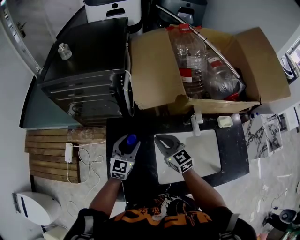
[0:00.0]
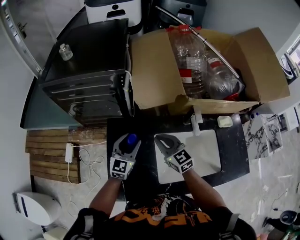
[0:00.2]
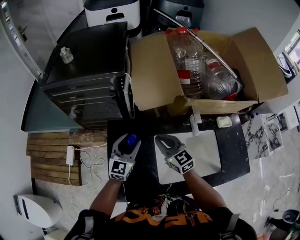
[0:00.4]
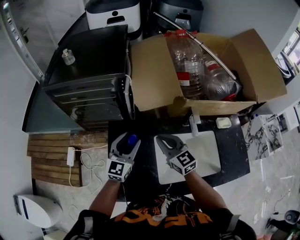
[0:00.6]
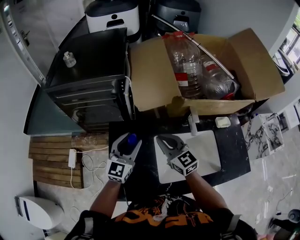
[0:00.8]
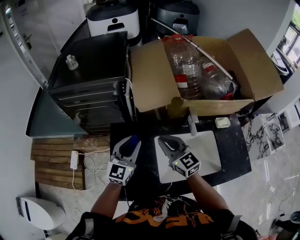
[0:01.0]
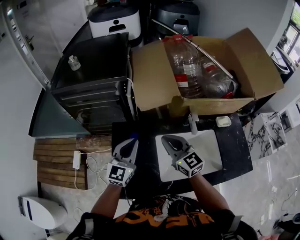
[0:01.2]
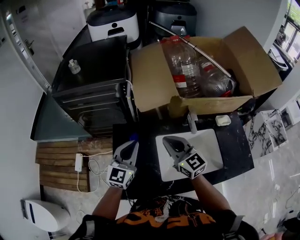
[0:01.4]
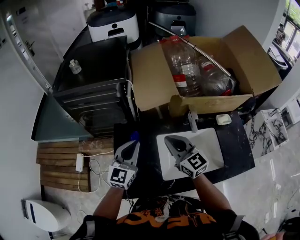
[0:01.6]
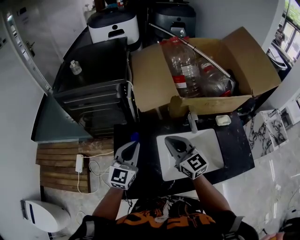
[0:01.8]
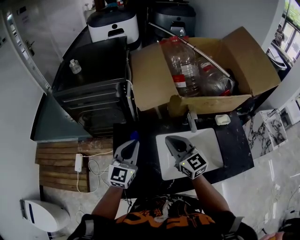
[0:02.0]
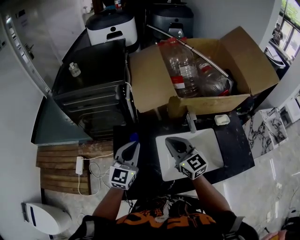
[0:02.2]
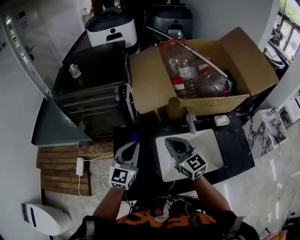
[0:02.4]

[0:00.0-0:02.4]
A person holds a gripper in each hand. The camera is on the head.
0:00.0 to 0:01.2: The grippers both shift upward and backward by approximately 15 cm. The left gripper closes up.
0:01.2 to 0:02.4: The grippers move only a little.

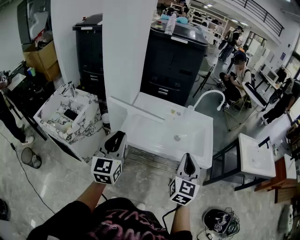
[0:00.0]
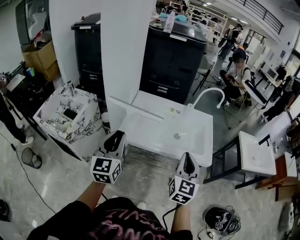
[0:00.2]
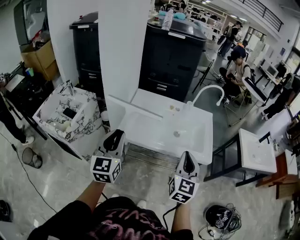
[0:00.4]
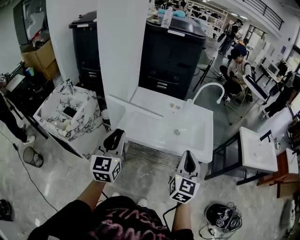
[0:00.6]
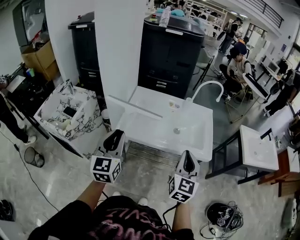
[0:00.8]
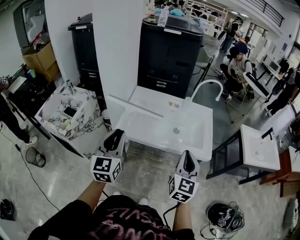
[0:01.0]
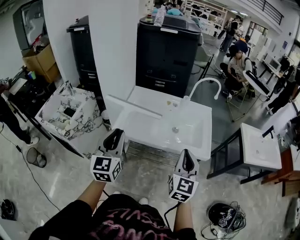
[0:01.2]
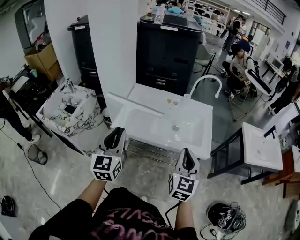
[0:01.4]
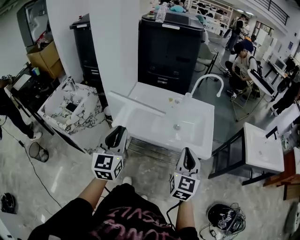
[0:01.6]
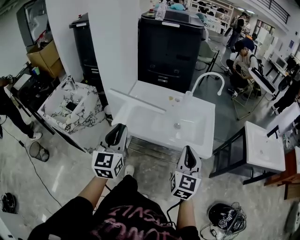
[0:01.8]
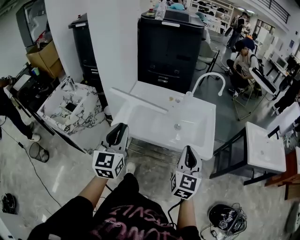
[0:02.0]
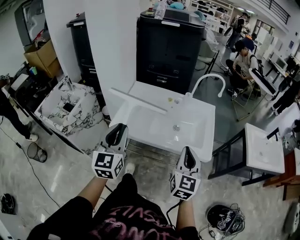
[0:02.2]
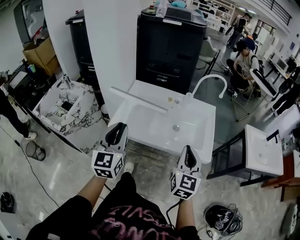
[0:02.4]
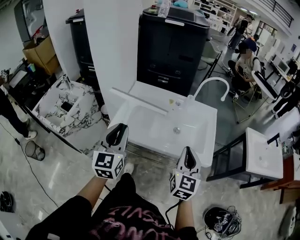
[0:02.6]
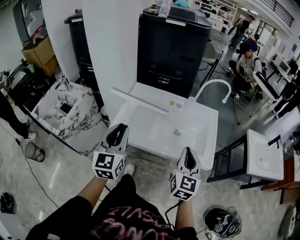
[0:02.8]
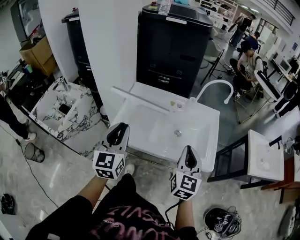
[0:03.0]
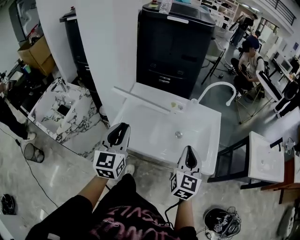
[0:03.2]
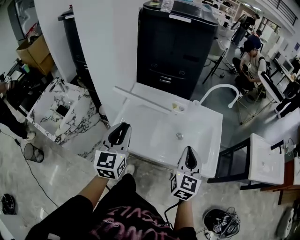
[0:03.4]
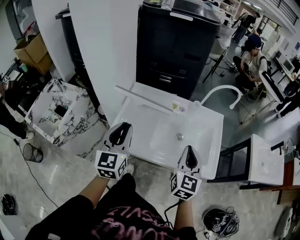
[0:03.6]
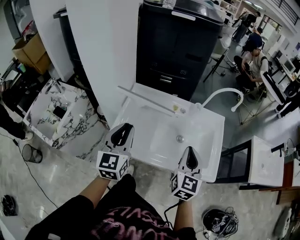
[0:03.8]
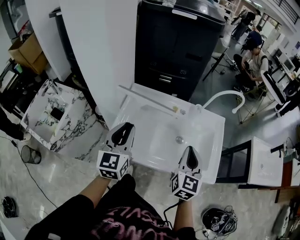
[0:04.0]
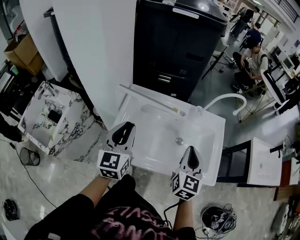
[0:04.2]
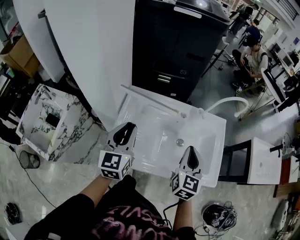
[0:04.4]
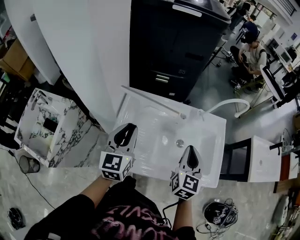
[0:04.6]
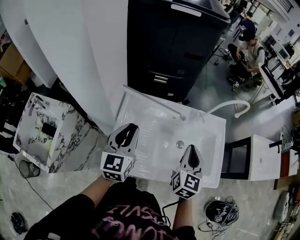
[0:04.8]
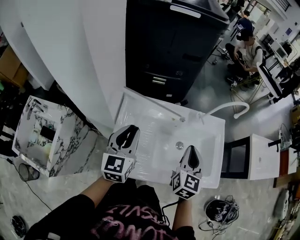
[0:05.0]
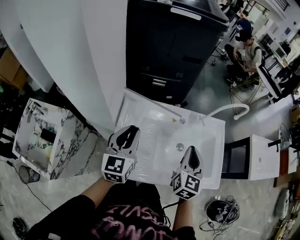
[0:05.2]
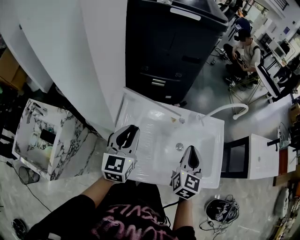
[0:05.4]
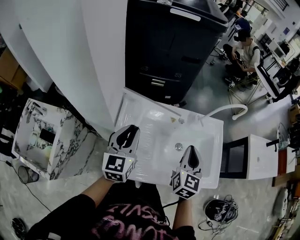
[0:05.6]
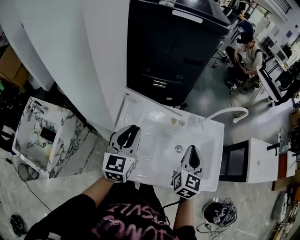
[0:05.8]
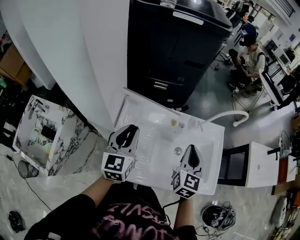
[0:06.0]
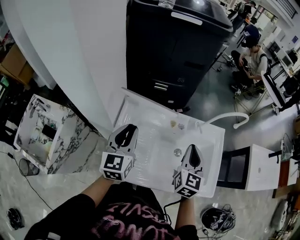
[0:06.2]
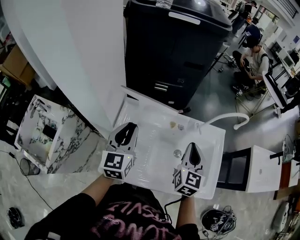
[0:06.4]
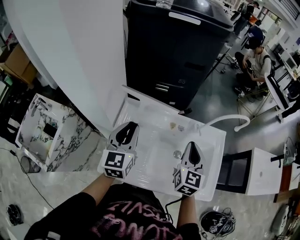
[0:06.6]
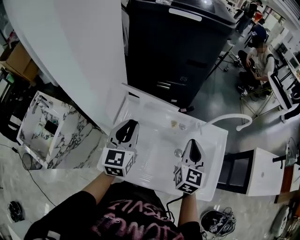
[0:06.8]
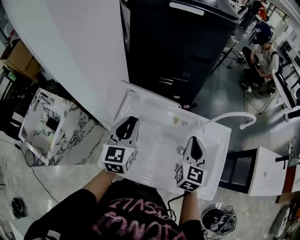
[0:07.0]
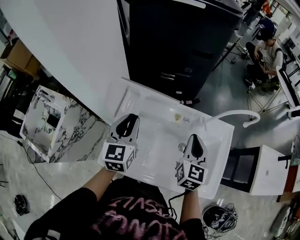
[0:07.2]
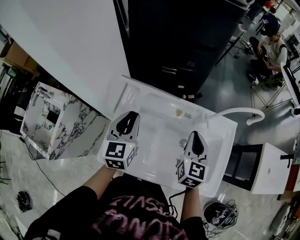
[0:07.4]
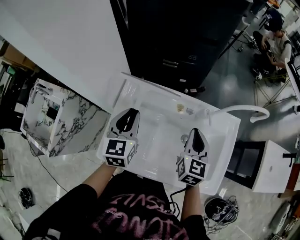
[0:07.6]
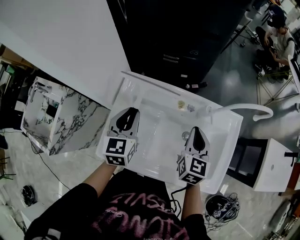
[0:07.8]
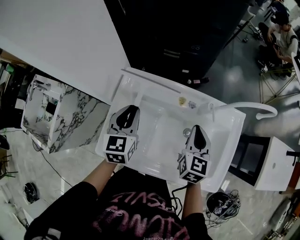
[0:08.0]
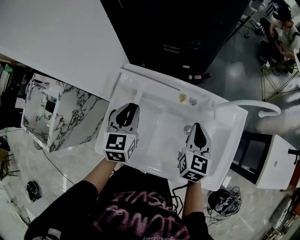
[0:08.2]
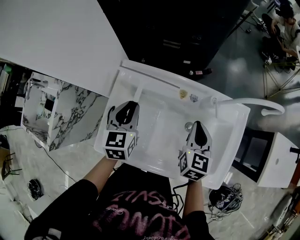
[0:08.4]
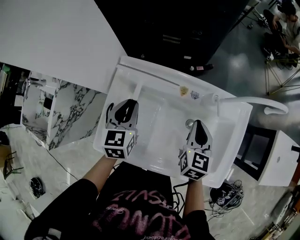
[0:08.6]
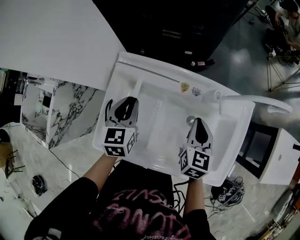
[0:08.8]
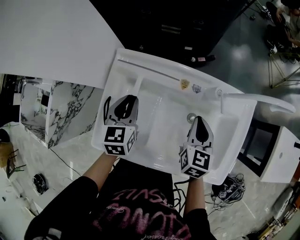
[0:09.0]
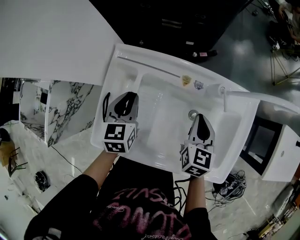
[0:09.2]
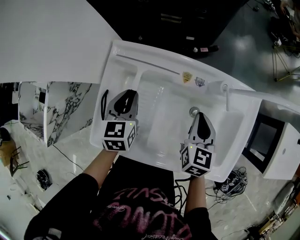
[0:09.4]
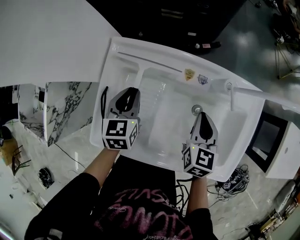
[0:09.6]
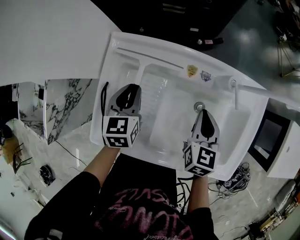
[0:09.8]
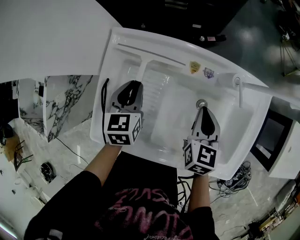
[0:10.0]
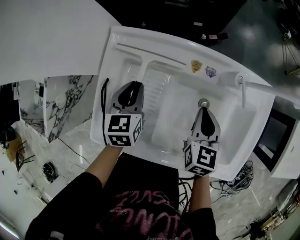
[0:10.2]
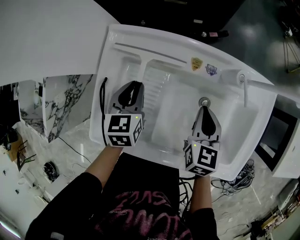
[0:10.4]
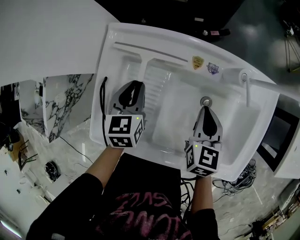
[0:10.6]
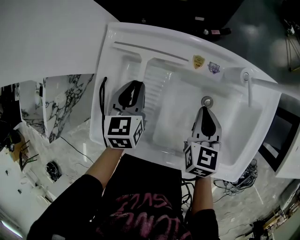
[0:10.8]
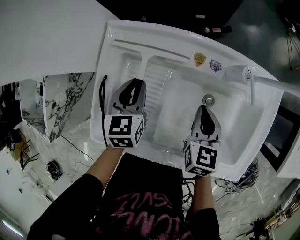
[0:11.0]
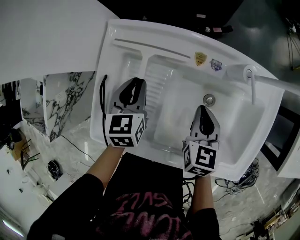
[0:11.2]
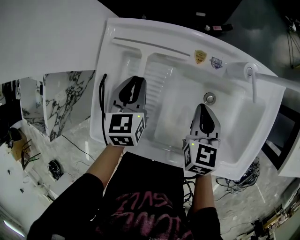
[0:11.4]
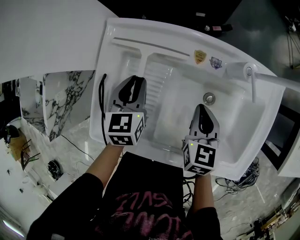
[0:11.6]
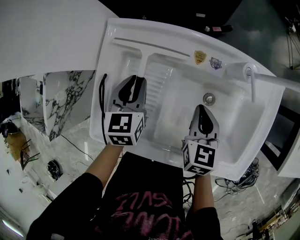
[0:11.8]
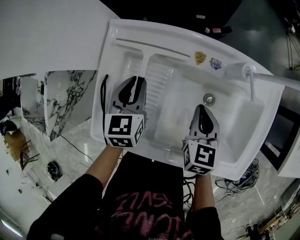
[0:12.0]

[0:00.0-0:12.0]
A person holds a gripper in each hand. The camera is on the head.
0:00.0 to 0:01.6: The two grippers go approximately 10 cm to the right.
0:01.6 to 0:03.0: Both grippers travel together forward, about 10 cm.
0:03.0 to 0:04.4: The grippers both shift forward by roughly 15 cm.
0:04.4 to 0:06.0: The grippers both shift forward by some 5 cm.
0:06.0 to 0:07.6: The left gripper is displaced downward by some 5 cm. Meanwhile the right gripper travels downward and forward by some 10 cm.
0:07.6 to 0:09.0: Both grippers travel together downward, approximately 10 cm.
0:09.0 to 0:10.4: Both grippers move downward, about 5 cm.
0:10.4 to 0:12.0: The grippers move only a little.

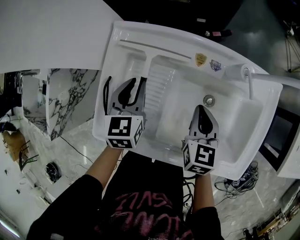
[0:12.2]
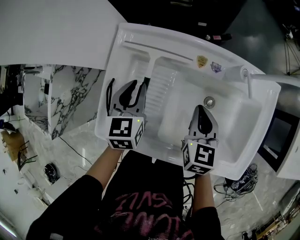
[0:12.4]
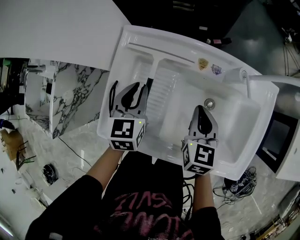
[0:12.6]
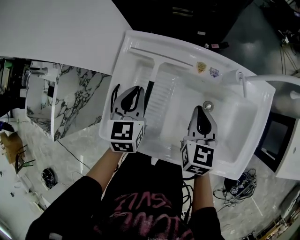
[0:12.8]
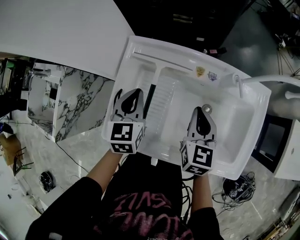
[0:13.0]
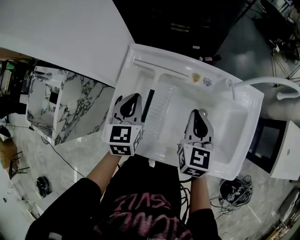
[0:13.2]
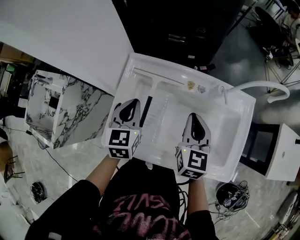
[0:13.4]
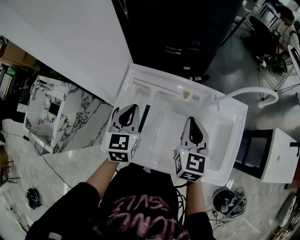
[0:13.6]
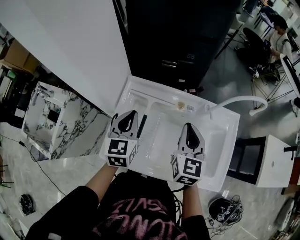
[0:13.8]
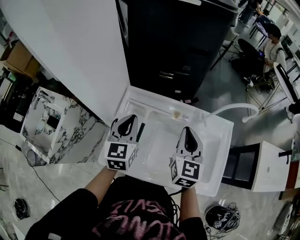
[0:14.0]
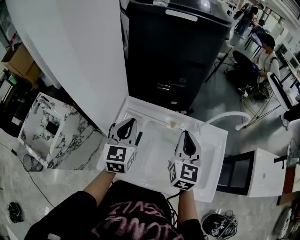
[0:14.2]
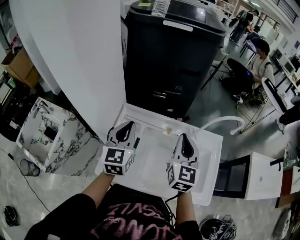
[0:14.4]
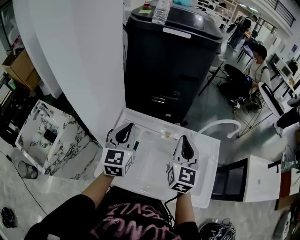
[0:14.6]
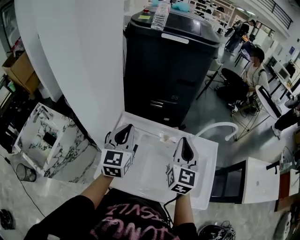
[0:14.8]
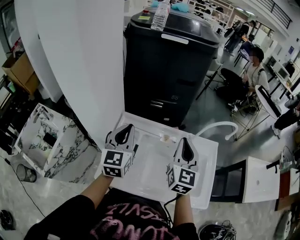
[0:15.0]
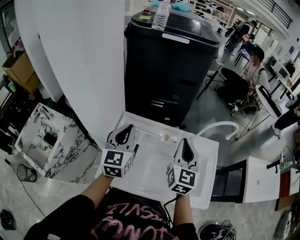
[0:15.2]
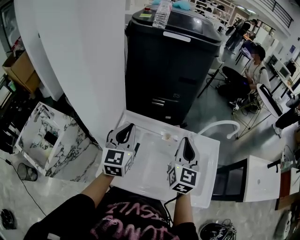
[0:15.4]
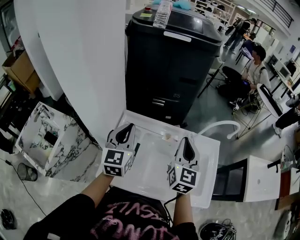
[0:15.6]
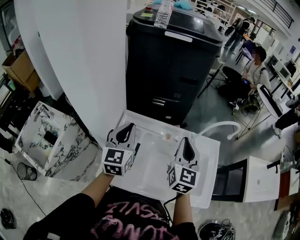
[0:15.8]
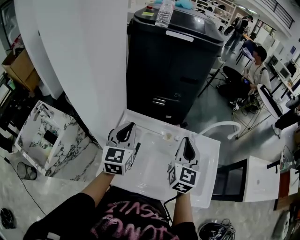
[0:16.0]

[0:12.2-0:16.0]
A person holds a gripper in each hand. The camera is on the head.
0:12.2 to 0:13.4: The two grippers go some 10 cm upward.
0:13.4 to 0:14.8: The two grippers go approximately 15 cm upward. The left gripper swivels some 20 degrees. The right gripper swivels approximately 20 degrees.
0:14.8 to 0:16.0: There are only small adjustments of the grippers.

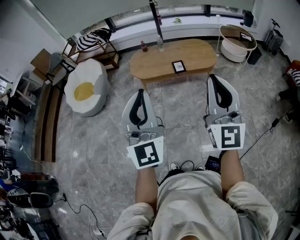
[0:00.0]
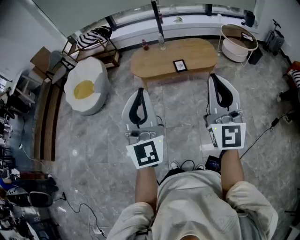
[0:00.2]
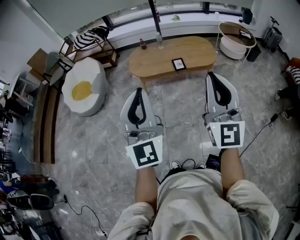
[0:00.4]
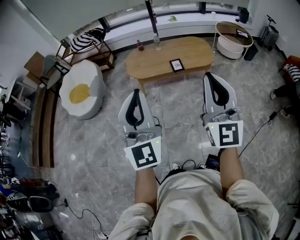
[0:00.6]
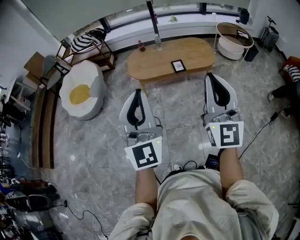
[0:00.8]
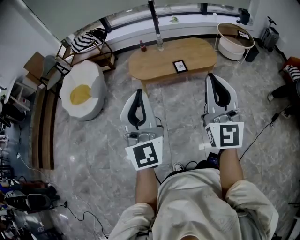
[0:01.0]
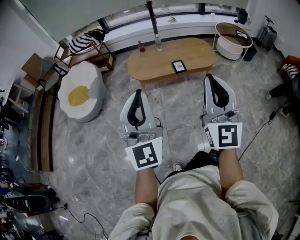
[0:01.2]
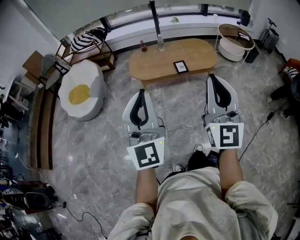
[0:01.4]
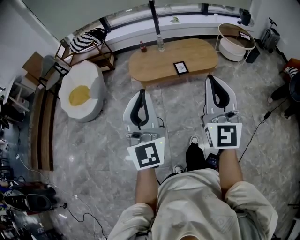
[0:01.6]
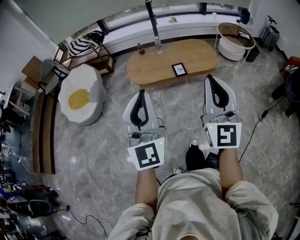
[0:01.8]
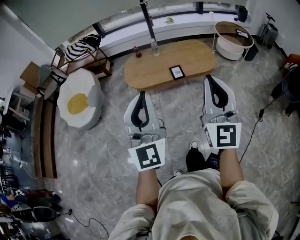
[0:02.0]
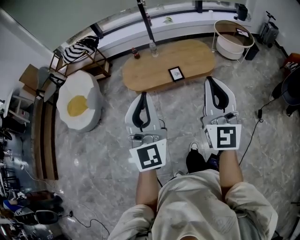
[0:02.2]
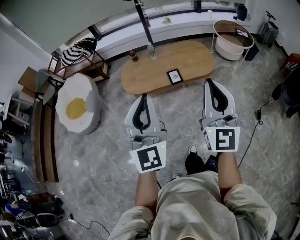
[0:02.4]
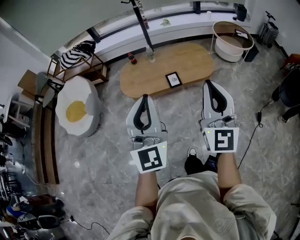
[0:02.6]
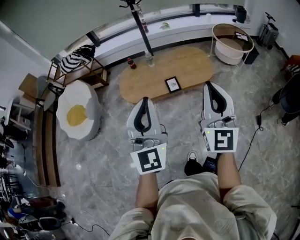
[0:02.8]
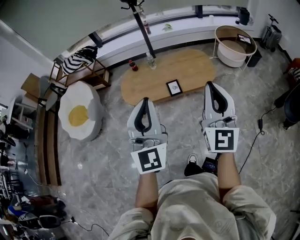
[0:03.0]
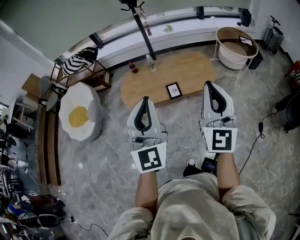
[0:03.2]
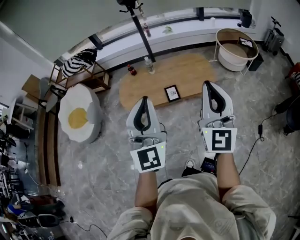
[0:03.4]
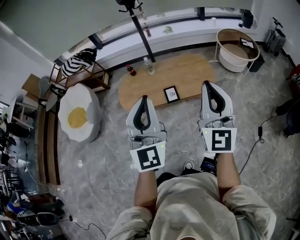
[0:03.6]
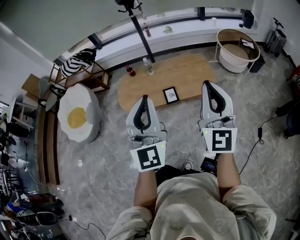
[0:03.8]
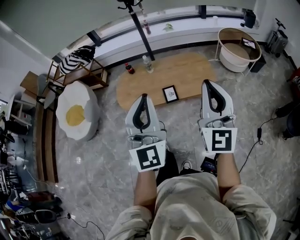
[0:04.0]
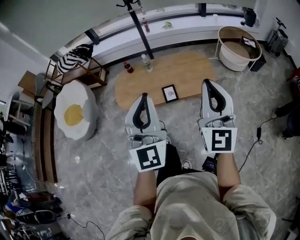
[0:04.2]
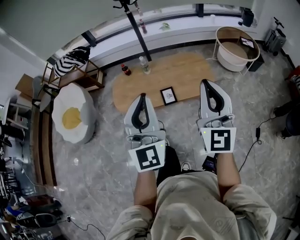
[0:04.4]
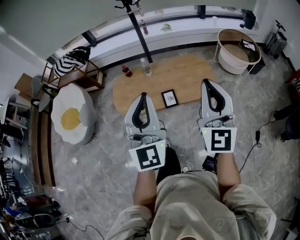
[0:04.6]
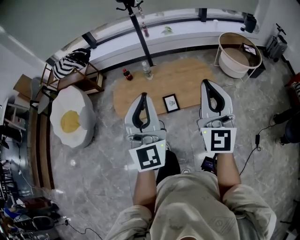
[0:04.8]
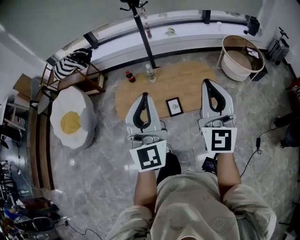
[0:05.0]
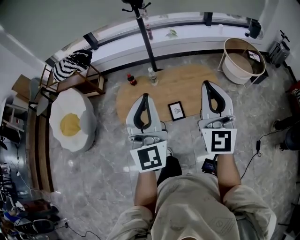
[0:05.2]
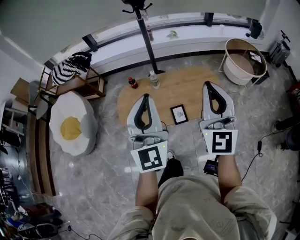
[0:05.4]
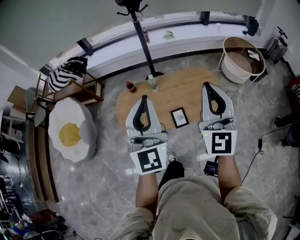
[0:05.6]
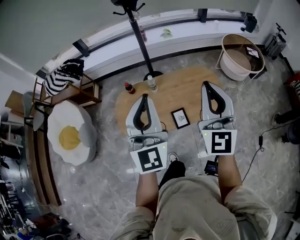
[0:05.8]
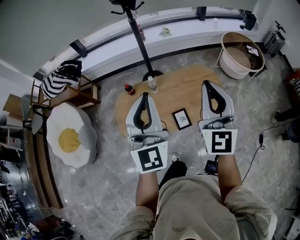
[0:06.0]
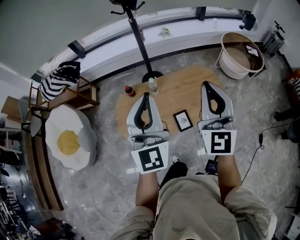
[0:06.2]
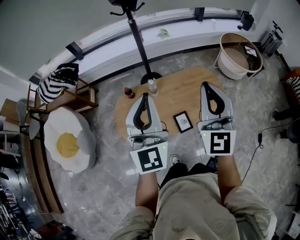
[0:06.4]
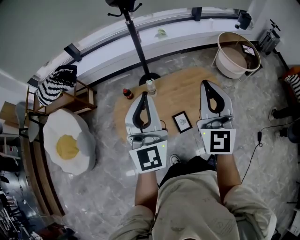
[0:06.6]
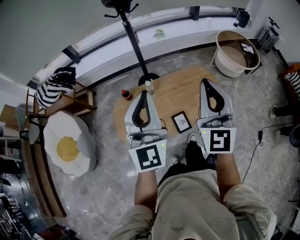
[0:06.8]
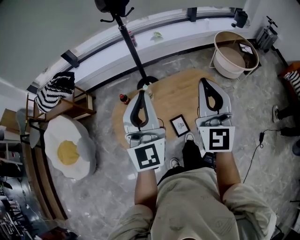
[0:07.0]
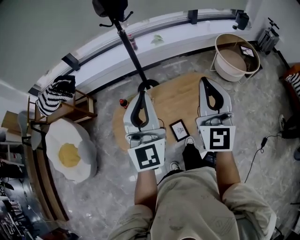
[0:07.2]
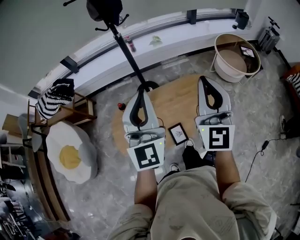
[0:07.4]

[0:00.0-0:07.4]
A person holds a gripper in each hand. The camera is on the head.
0:00.0 to 0:01.4: Both grippers move to the left, about 10 cm.
0:01.4 to 0:03.0: Both grippers travel together forward and to the right, roughly 25 cm.
0:03.0 to 0:04.4: The grippers both shift forward by about 15 cm.
0:04.4 to 0:06.0: The grippers both shift forward and to the left by some 30 cm.
0:06.0 to 0:07.4: The two grippers go some 15 cm forward and to the right.
